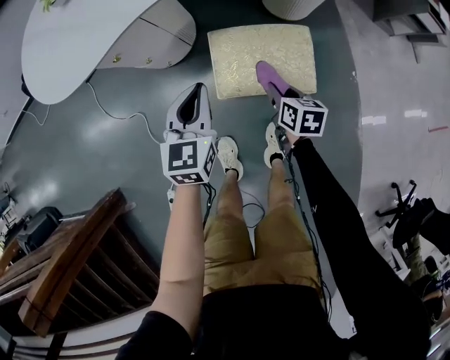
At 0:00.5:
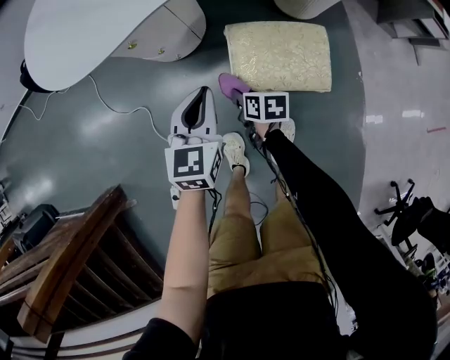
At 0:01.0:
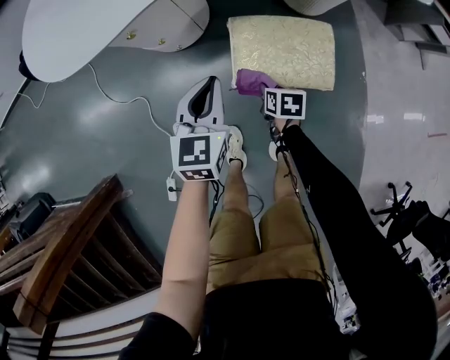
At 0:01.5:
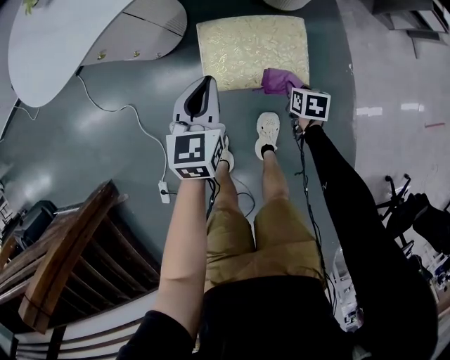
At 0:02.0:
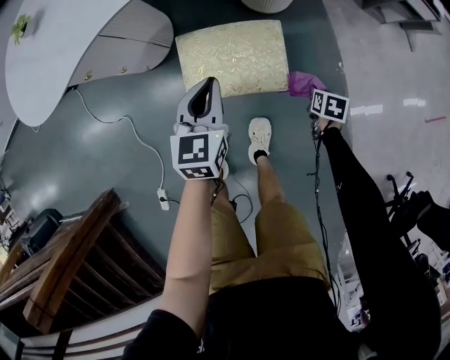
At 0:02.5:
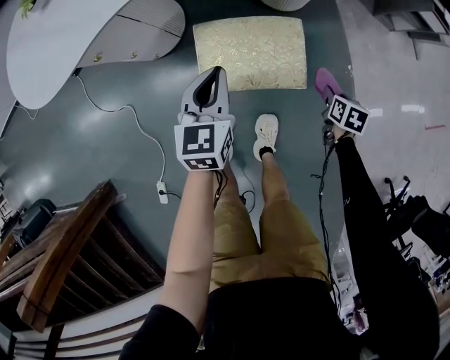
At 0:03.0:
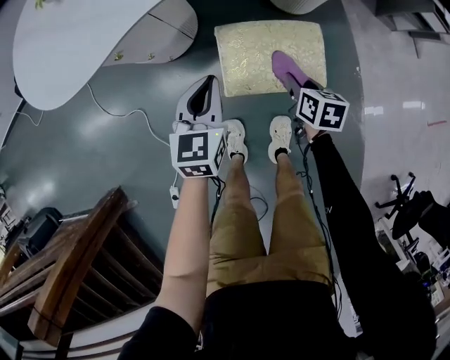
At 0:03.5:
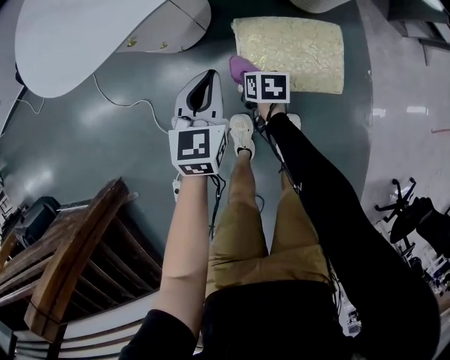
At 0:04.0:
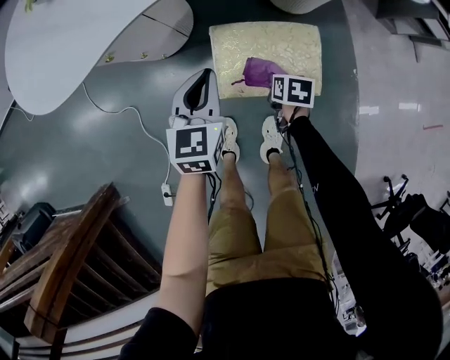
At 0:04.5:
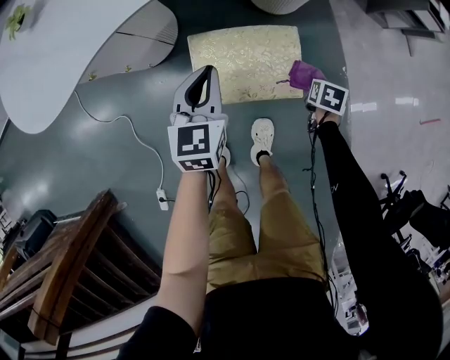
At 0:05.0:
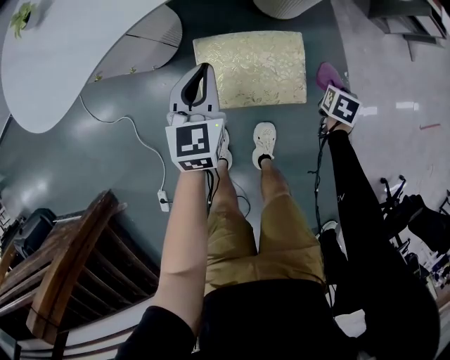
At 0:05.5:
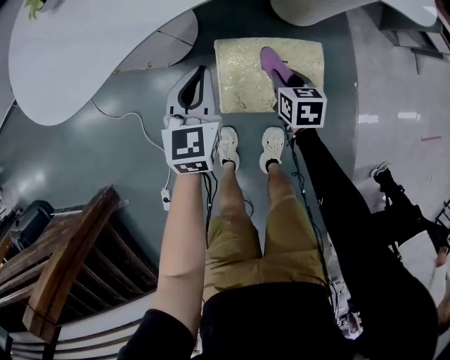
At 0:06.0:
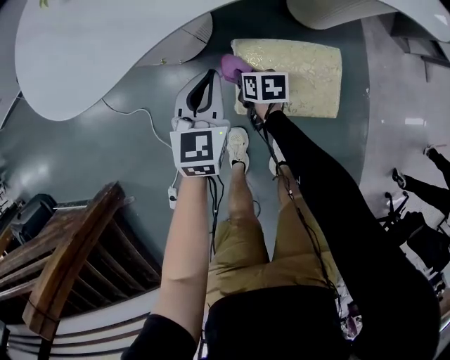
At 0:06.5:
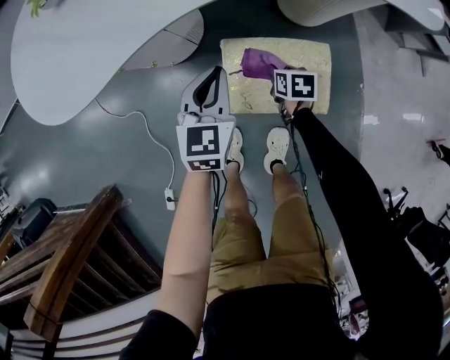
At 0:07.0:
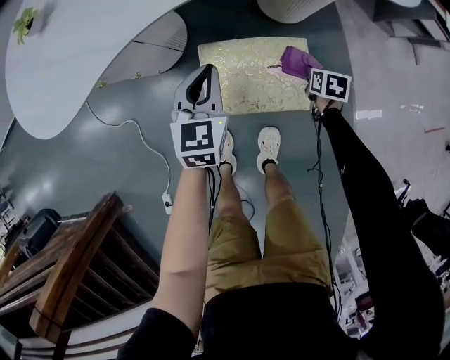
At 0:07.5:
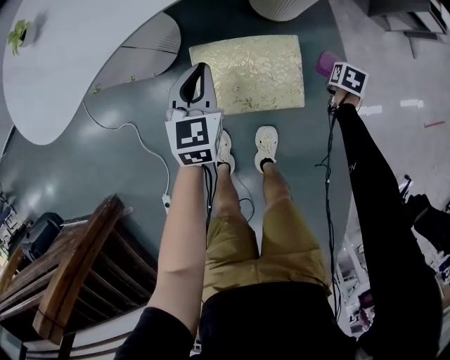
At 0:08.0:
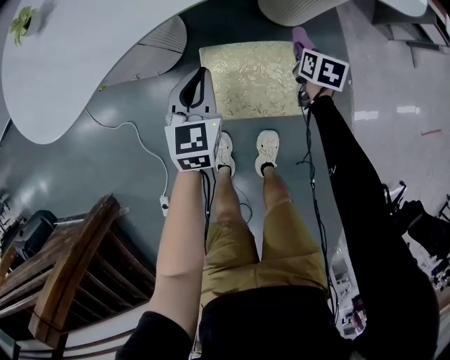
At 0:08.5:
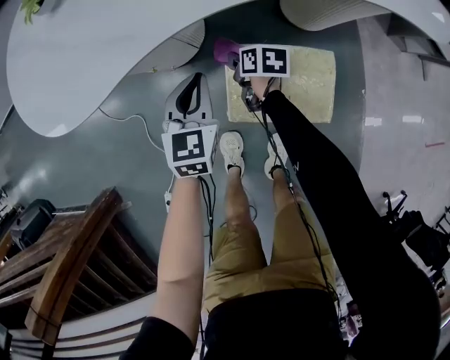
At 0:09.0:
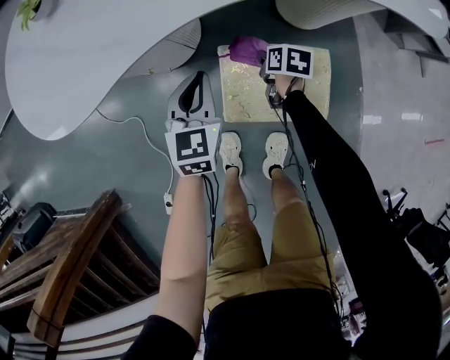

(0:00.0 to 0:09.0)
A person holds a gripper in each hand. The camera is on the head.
0:00.0 - 0:02.0: The right gripper moves approximately 30 cm, and turns by about 30 degrees. The left gripper moves about 15 cm.
0:02.0 - 0:04.5: The right gripper moves about 10 cm upward and comes back.
0:04.5 - 0:07.0: The right gripper reaches about 5 cm upward, then returns.
0:07.0 - 0:09.0: The right gripper shifts by about 25 cm. The left gripper shifts by roughly 10 cm.

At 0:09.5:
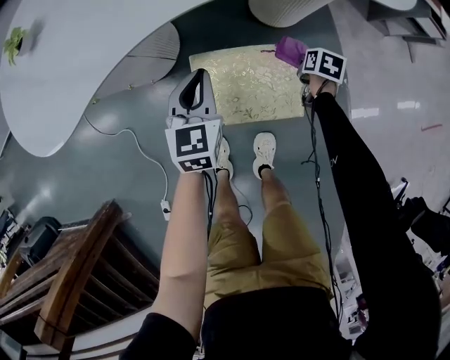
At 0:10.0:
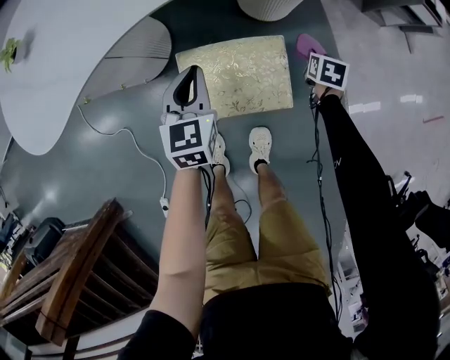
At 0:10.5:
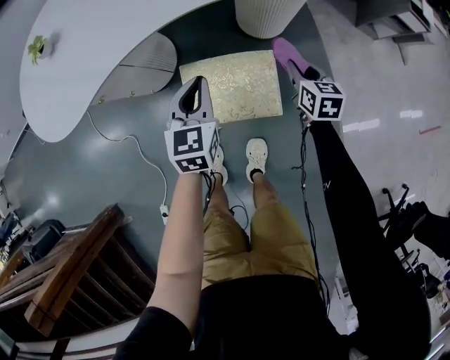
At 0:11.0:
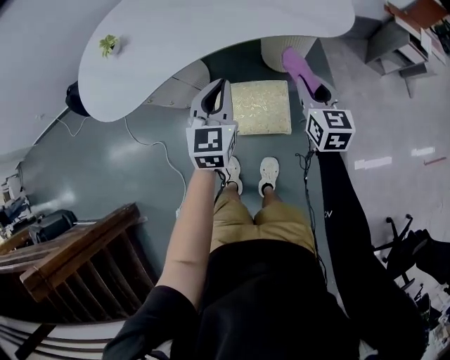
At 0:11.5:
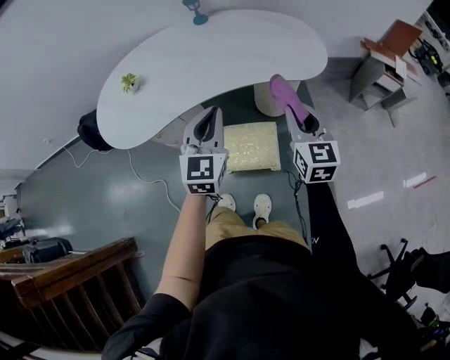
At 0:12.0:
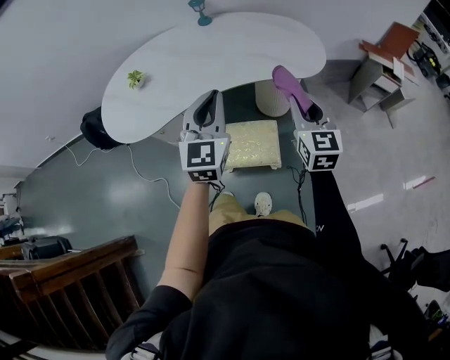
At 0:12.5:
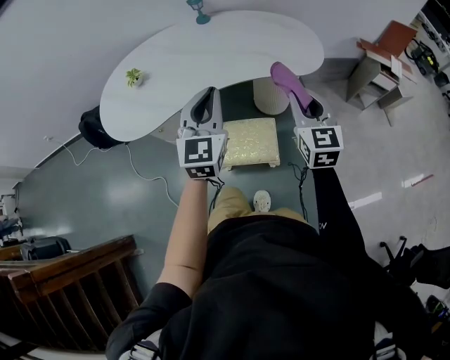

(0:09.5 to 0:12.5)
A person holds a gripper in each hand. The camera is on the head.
0:09.5 - 0:11.0: The right gripper is displaced upward by some 40 cm, and angles its fingers upward, by some 50 degrees. The left gripper is displaced upward by about 25 cm.
0:11.0 - 0:12.5: The grippers both shift upward by roughly 20 cm.

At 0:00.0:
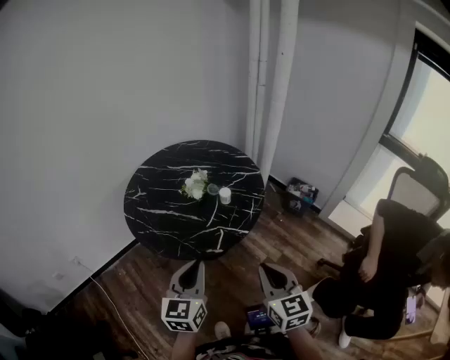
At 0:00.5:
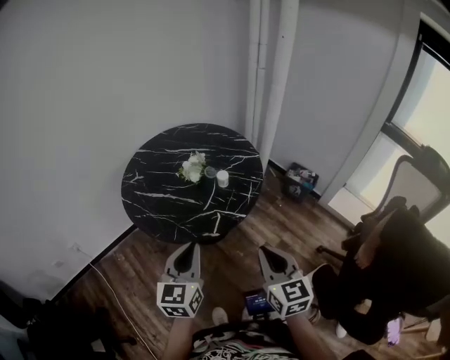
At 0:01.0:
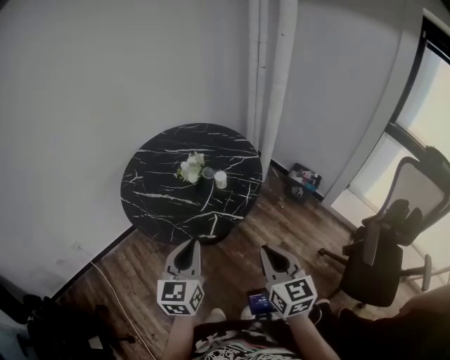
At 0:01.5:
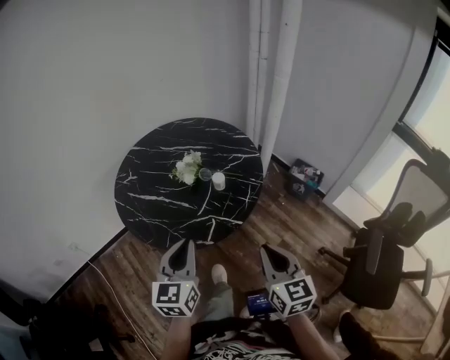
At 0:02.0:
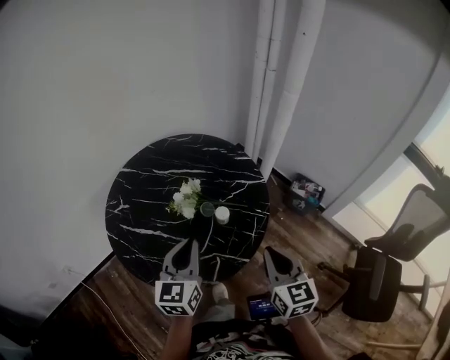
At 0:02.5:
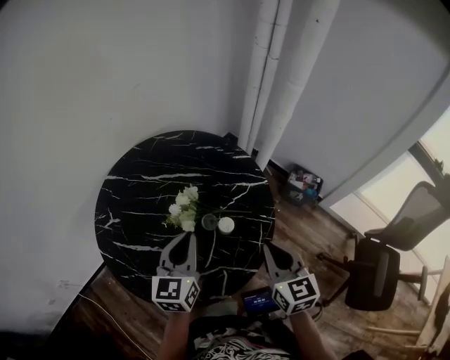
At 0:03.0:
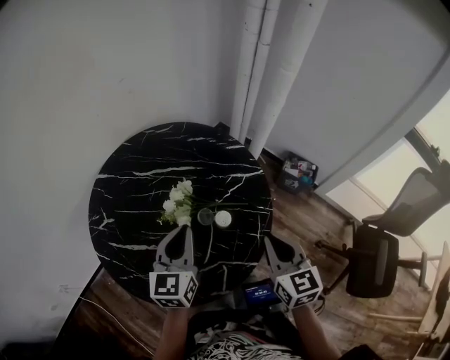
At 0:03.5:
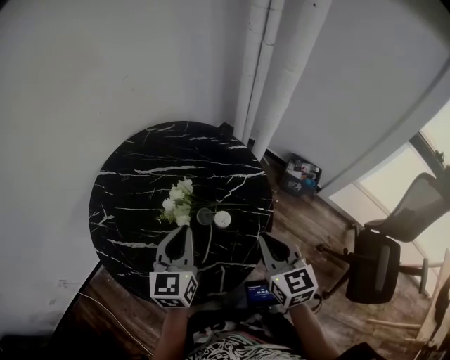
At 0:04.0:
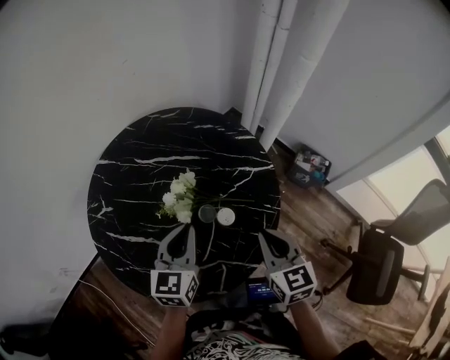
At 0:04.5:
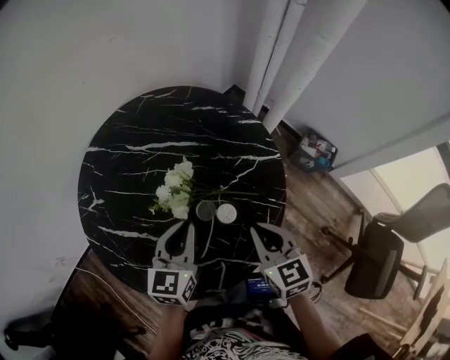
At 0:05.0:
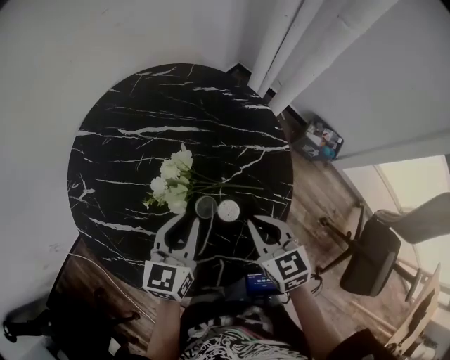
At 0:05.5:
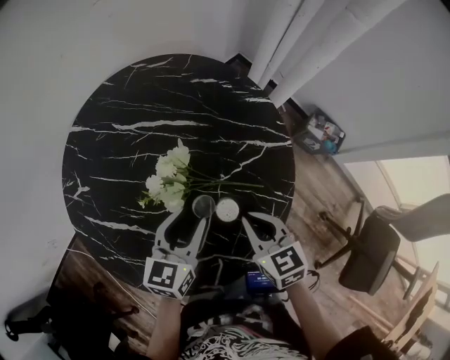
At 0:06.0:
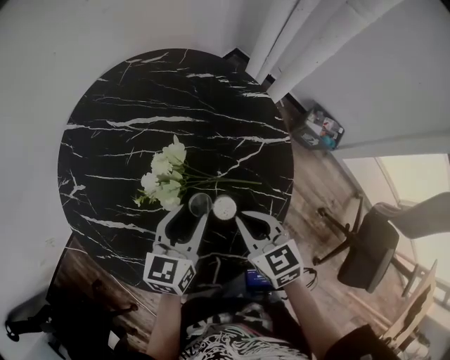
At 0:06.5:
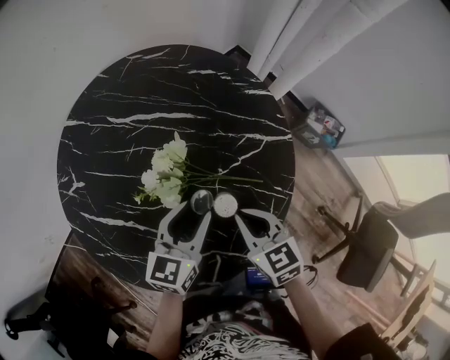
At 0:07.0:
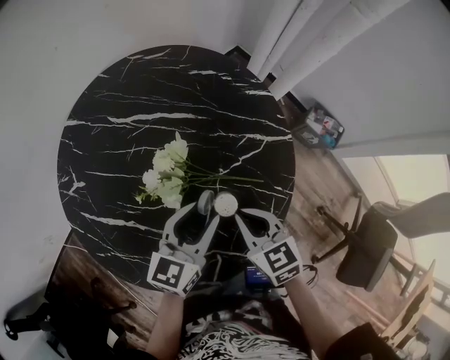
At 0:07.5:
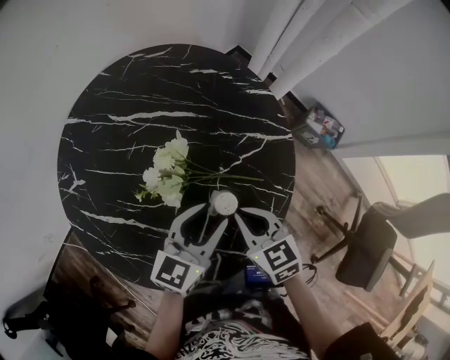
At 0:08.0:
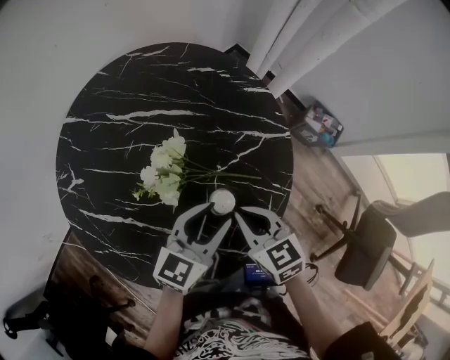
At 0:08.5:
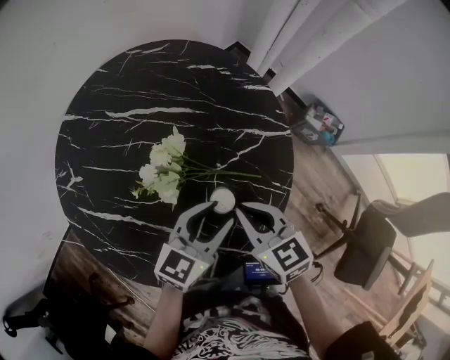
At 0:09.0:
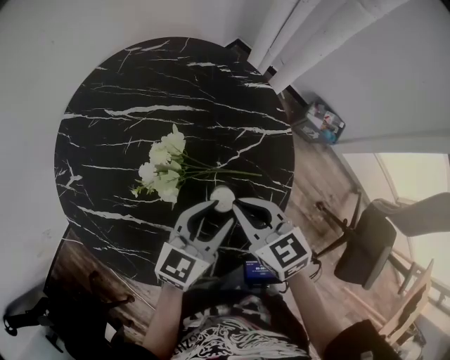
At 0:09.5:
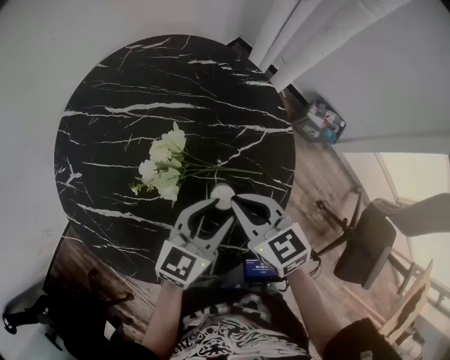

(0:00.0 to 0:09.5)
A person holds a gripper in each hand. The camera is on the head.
0:00.0 - 0:02.0: Both grippers travel together forward, approximately 25 cm.
0:02.0 - 0:04.0: The grippers both shift forward and downward by approximately 15 cm.
0:04.0 - 0:05.5: The right gripper moves downward and forward, roughly 10 cm. Meanwhile the left gripper is displaced downward by roughly 10 cm, and opens its fingers.
0:05.5 - 0:07.5: The left gripper goes roughly 5 cm to the right.
0:07.5 - 0:09.5: The grippers make only small movements.

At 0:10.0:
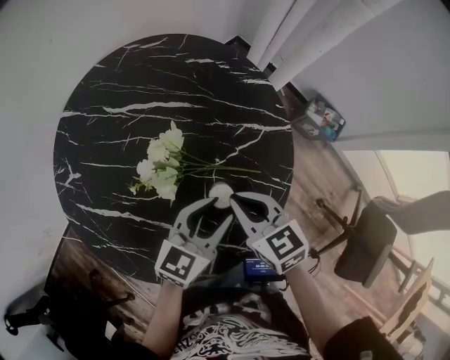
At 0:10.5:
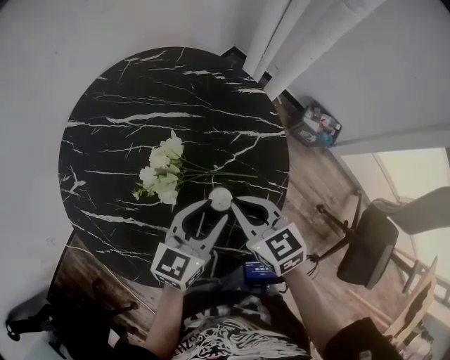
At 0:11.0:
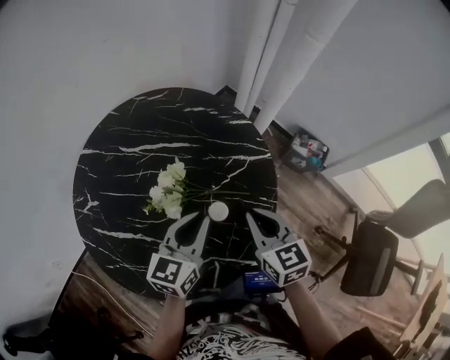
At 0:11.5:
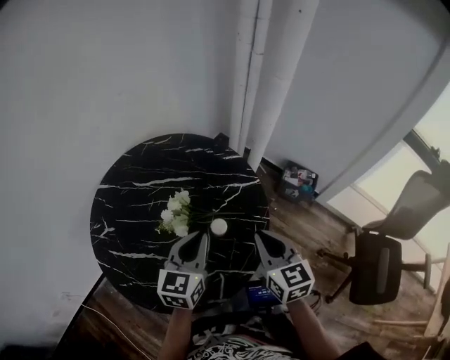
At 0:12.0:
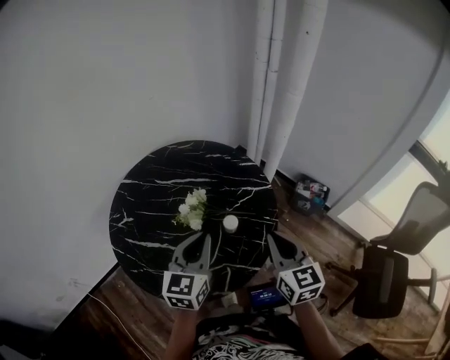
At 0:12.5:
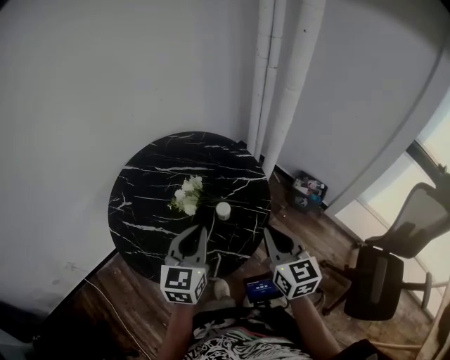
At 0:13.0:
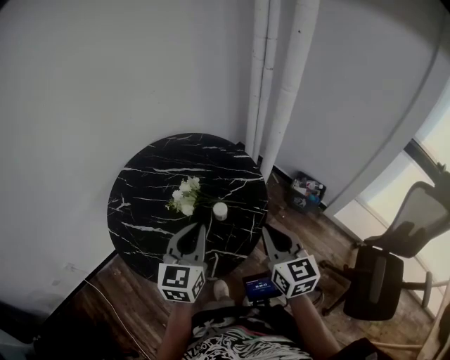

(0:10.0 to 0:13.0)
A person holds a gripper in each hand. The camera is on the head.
0:10.0 - 0:11.5: The right gripper moves upward, to the right and backward, about 20 cm, and changes its angle by approximately 30 degrees. The left gripper heads upward, covering approximately 15 cm, and closes up.
0:11.5 - 0:13.0: Both grippers travel together backward and upward, approximately 10 cm.

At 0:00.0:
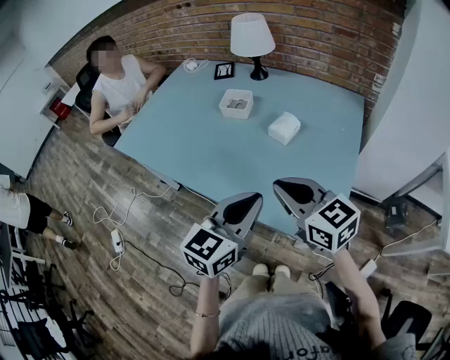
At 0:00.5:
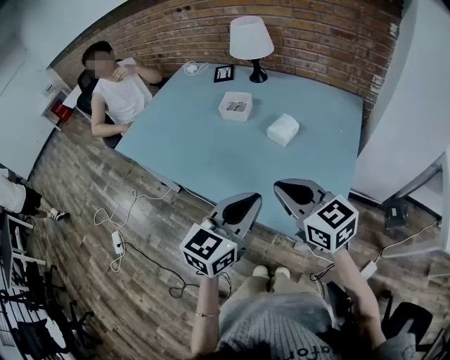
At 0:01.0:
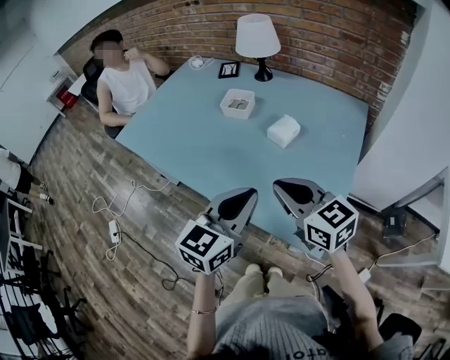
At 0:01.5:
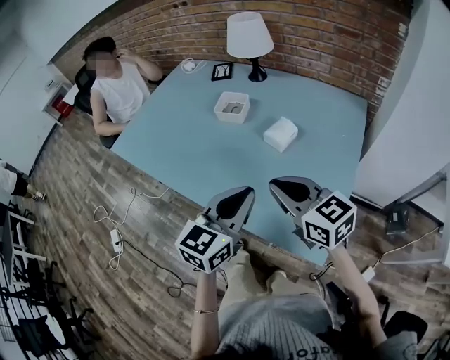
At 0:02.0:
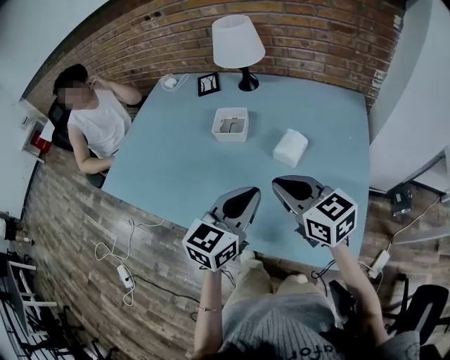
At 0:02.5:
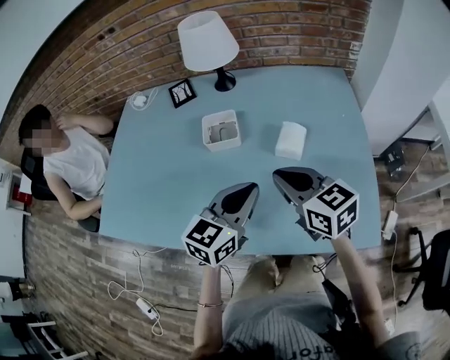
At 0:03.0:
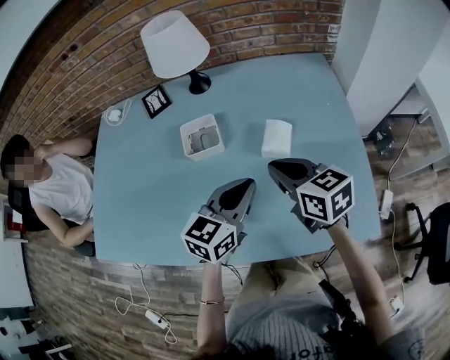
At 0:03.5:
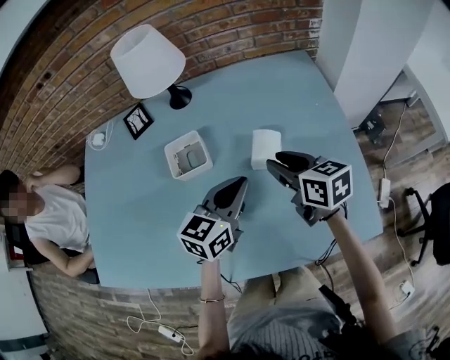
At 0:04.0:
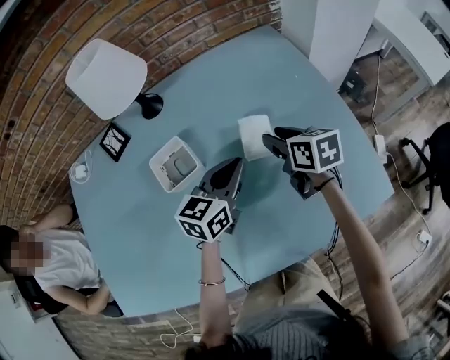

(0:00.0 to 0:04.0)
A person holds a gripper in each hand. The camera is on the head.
0:00.0 - 0:02.0: Both grippers move forward, roughly 15 cm.
0:02.0 - 0:04.0: The left gripper moves approximately 20 cm, and swivels about 40 degrees. The right gripper changes place by approximately 25 cm, swivels about 60 degrees, and opens up.
